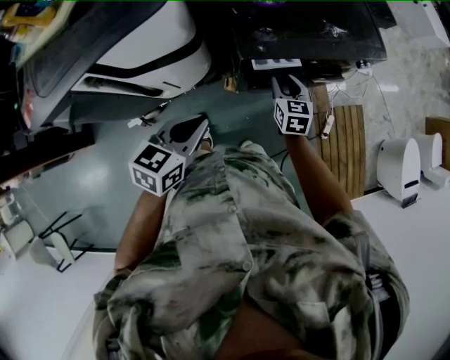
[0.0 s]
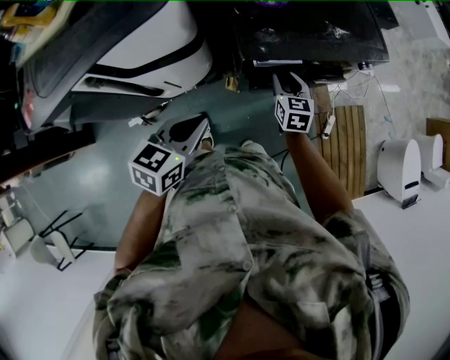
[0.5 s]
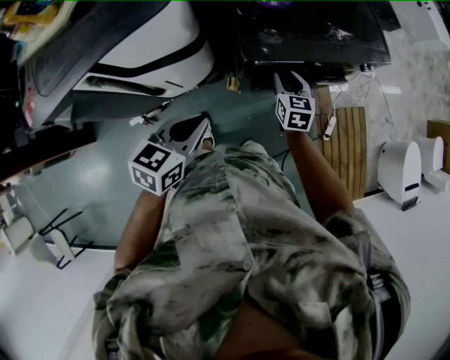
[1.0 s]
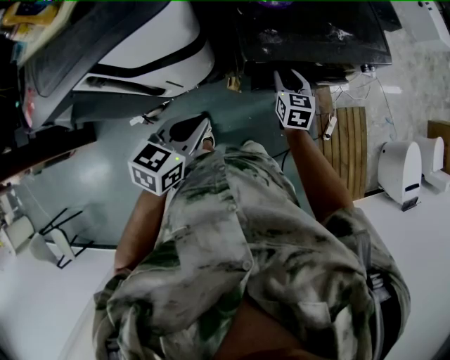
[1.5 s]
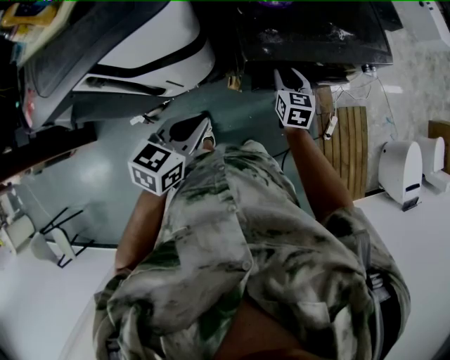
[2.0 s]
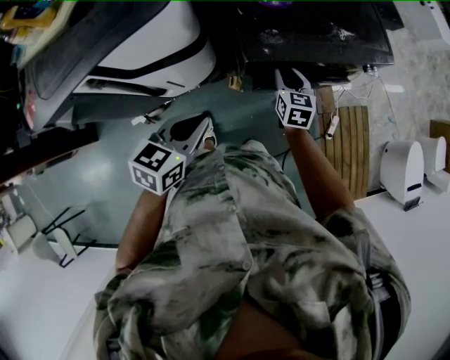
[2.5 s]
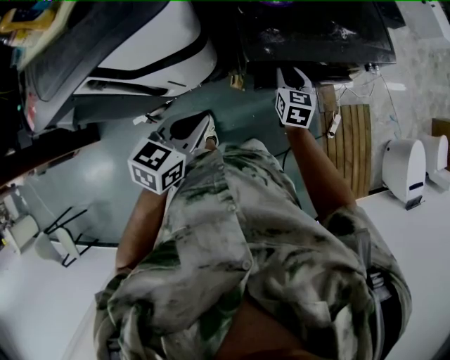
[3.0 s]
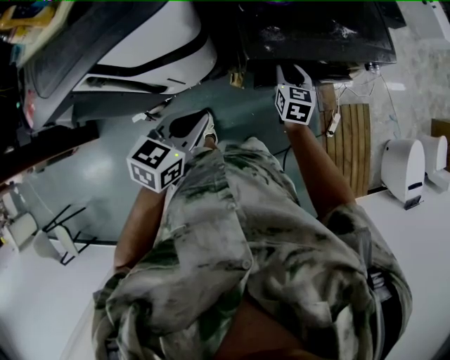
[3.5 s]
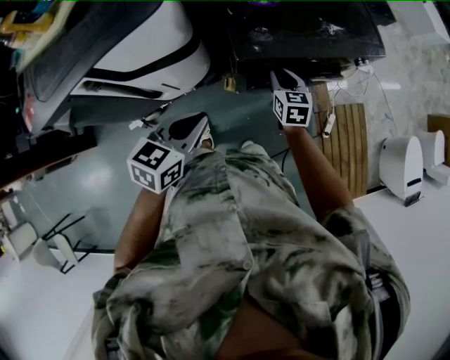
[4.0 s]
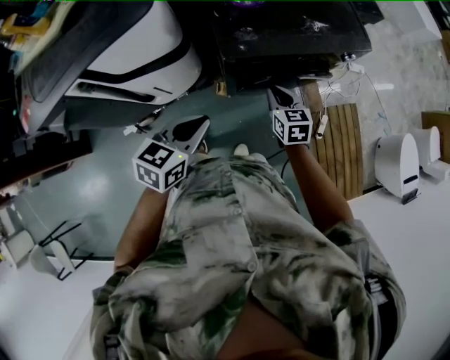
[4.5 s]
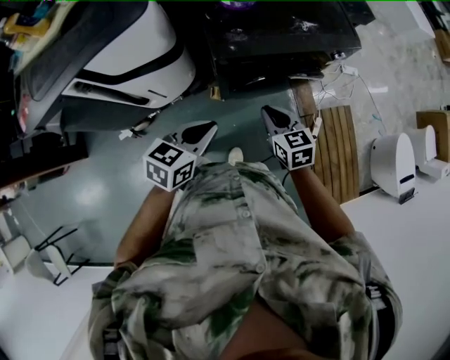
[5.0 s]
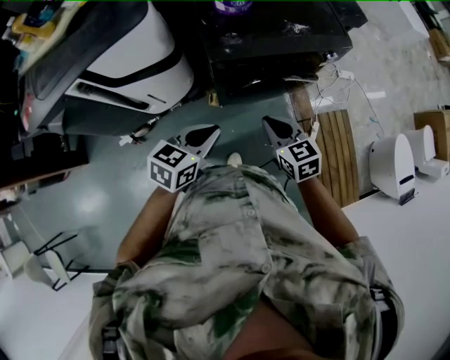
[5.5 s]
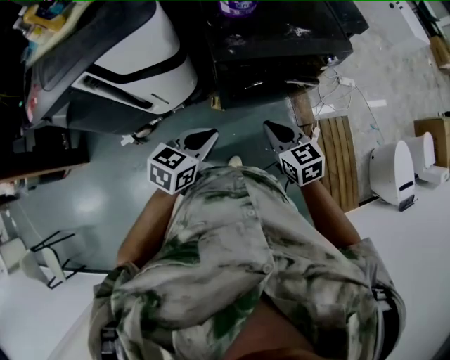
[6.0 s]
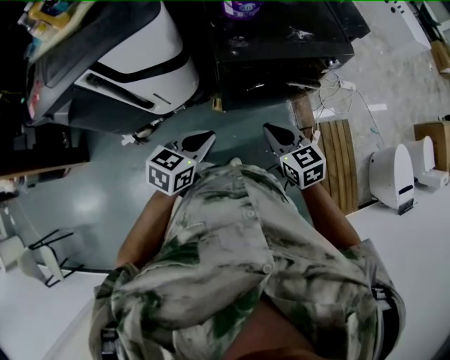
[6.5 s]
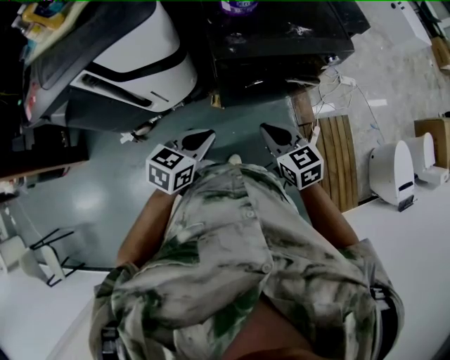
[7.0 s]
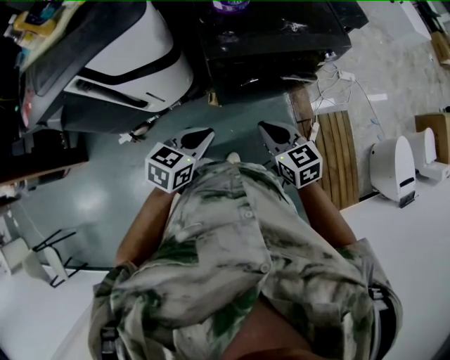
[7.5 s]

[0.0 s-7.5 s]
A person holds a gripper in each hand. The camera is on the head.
0.0 to 4.0 s: The grippers make only small movements.
4.0 to 5.5 s: The right gripper travels backward and upward by approximately 20 cm. The left gripper travels to the right and backward by about 15 cm.
5.5 to 7.5 s: There are only small adjustments of the grippers.

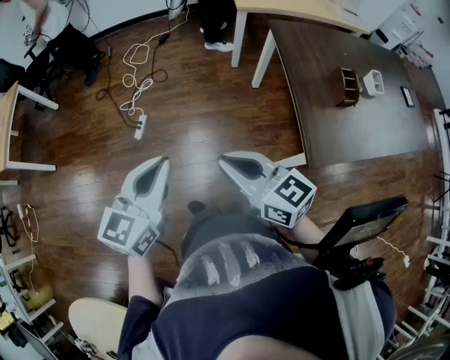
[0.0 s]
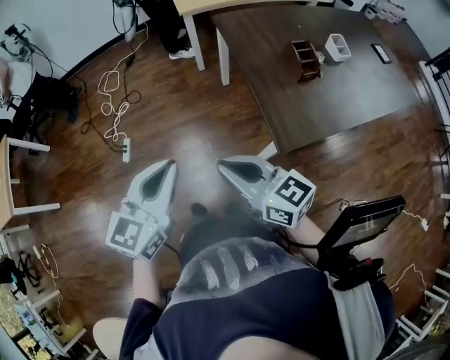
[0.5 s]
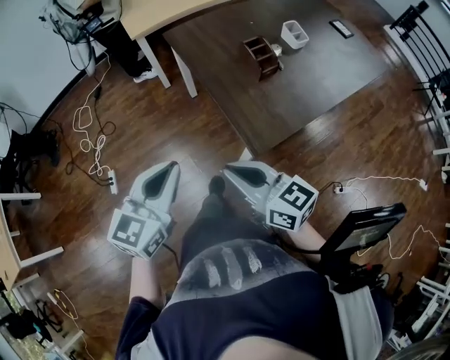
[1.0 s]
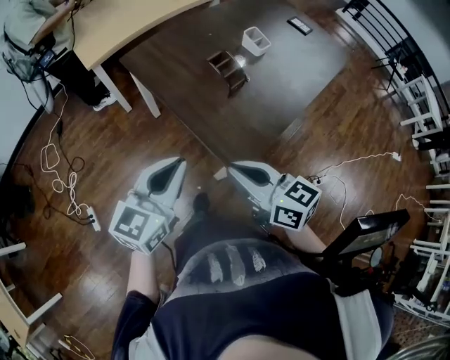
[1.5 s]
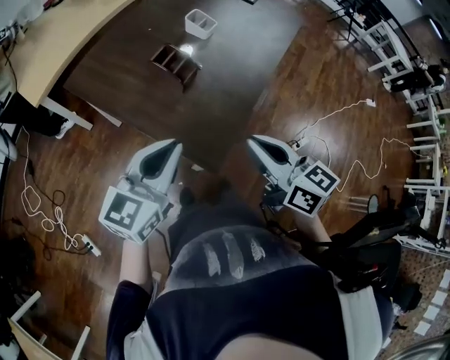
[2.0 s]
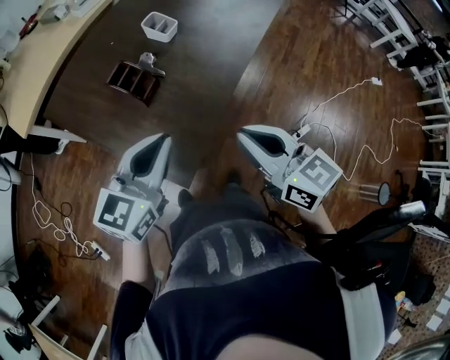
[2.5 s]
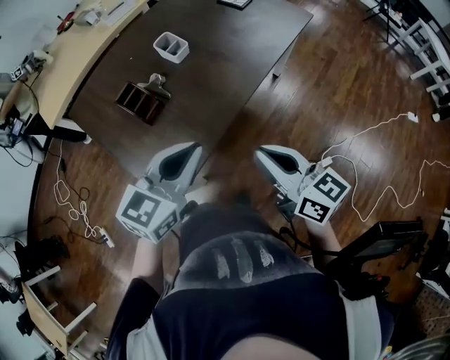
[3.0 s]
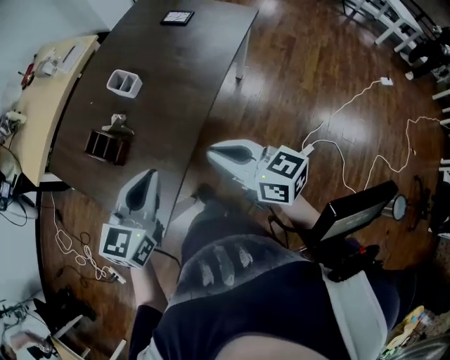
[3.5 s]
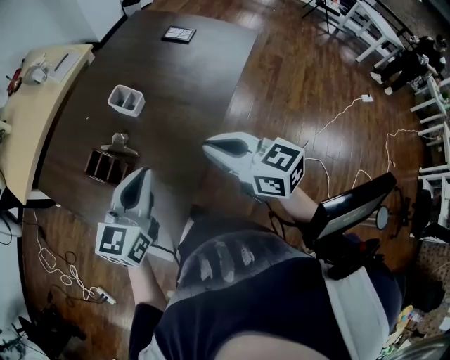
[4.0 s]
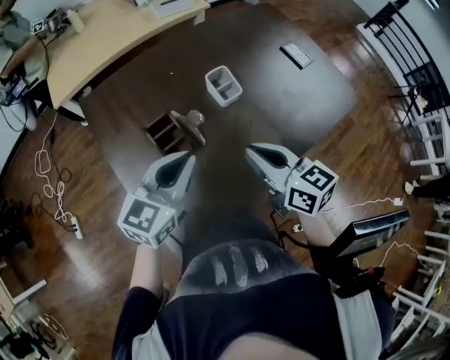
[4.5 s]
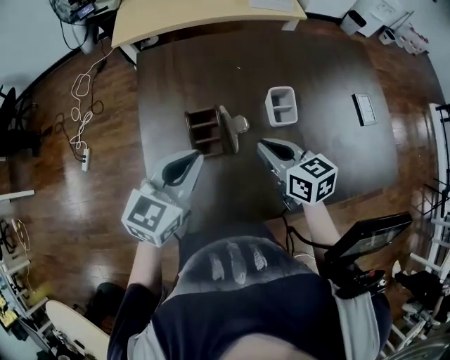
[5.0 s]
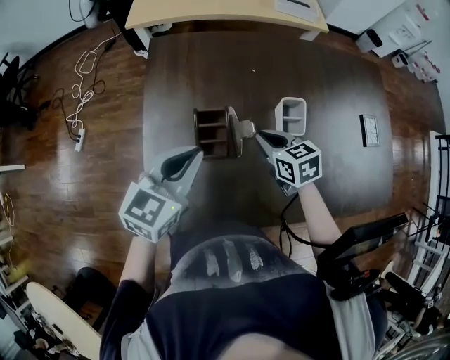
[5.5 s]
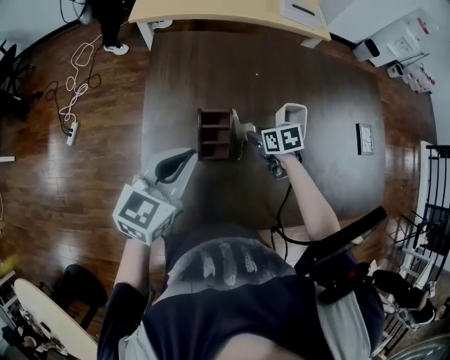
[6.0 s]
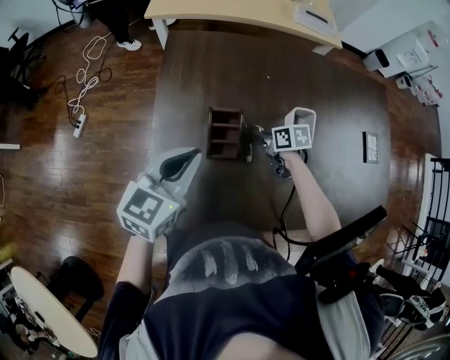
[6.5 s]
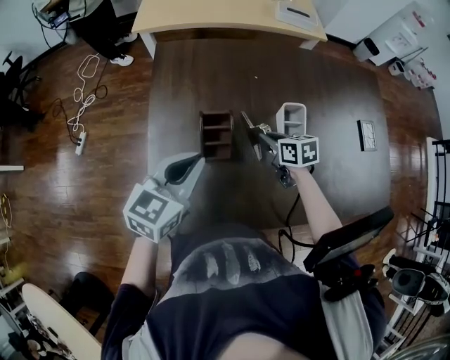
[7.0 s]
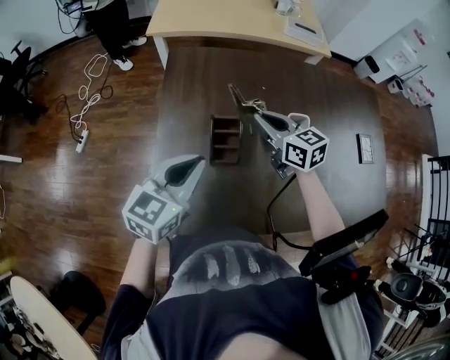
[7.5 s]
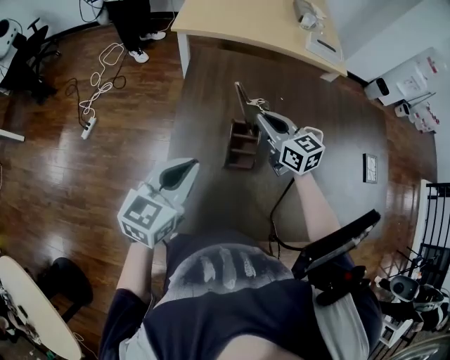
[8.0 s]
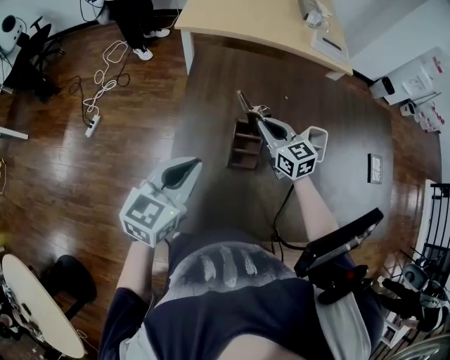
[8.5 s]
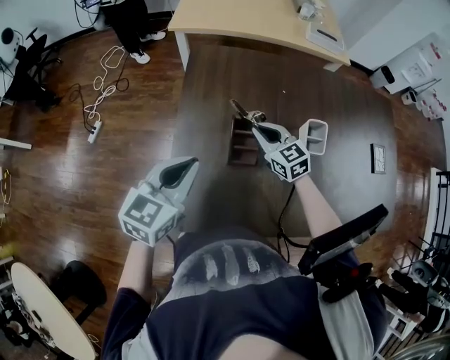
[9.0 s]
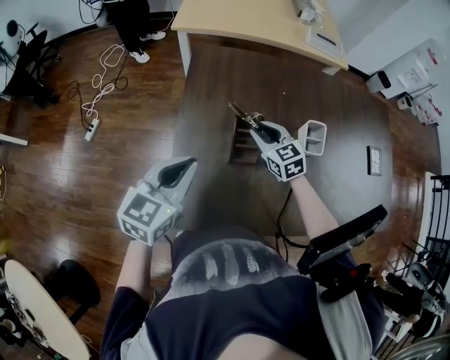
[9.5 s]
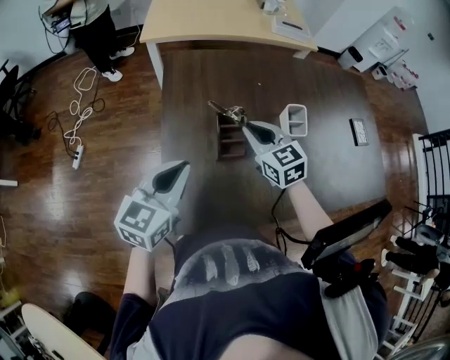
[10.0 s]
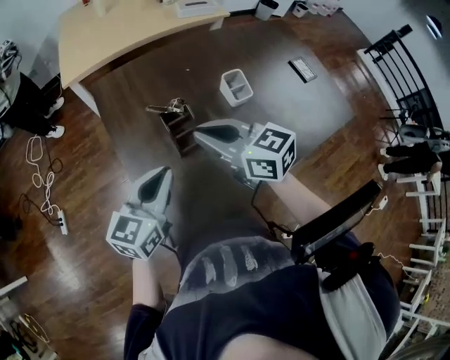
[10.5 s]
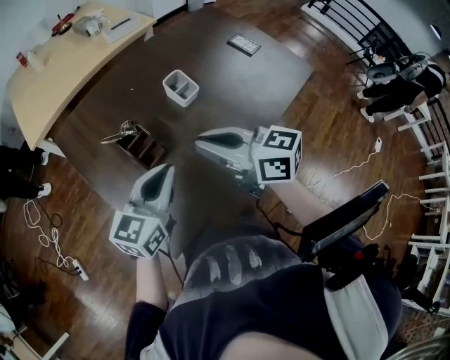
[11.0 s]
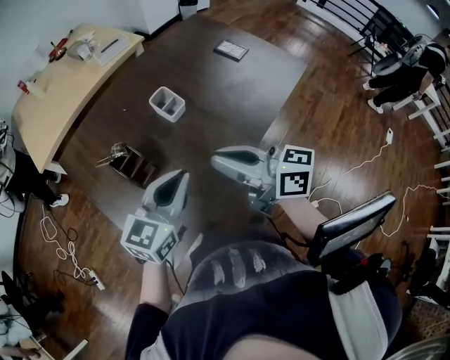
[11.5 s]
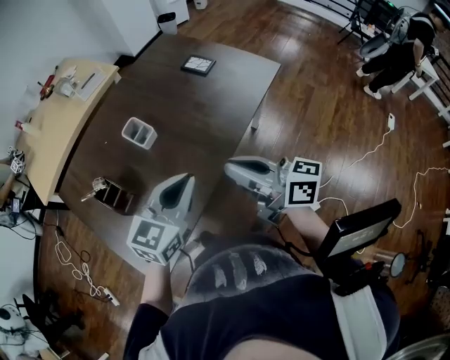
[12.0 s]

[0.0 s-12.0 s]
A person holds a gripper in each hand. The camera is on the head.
0.0 to 2.0 s: The pair of grippers is taken about 40 cm. The right gripper changes its angle by approximately 60 degrees. The left gripper turns by roughly 60 degrees.
2.0 to 4.0 s: Both grippers travel together to the right and forward, some 30 cm.
4.0 to 6.0 s: The right gripper changes place by some 40 cm, angles its fingers downward, by about 40 degrees, and opens up. Meanwhile the left gripper moves roughly 20 cm, and changes its angle by about 50 degrees.
6.0 to 8.0 s: The right gripper travels upward and to the left by roughly 20 cm, tilts its fingers about 40 degrees upward, and closes its fingers; the left gripper shifts approximately 10 cm to the left.
8.0 to 10.0 s: The right gripper heads backward, covering approximately 5 cm, and reaches roughly 10 cm downward, then returns.
10.0 to 12.0 s: The right gripper moves approximately 40 cm, and points its fingers approximately 30 degrees further upward, while the left gripper moves approximately 40 cm, and turns by roughly 50 degrees.

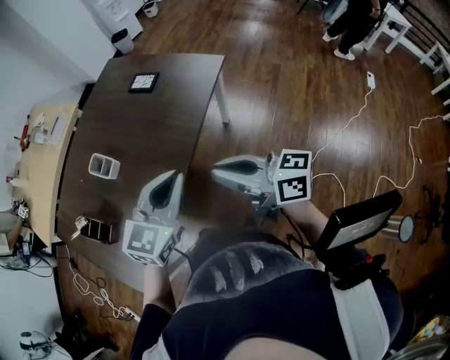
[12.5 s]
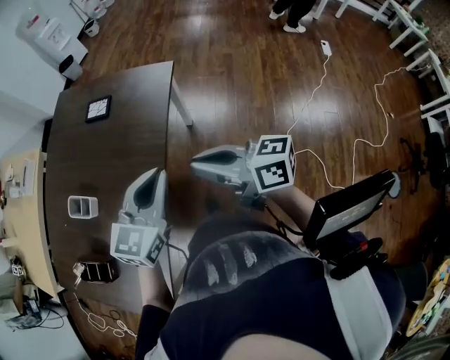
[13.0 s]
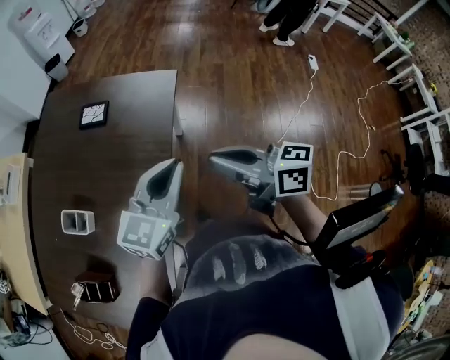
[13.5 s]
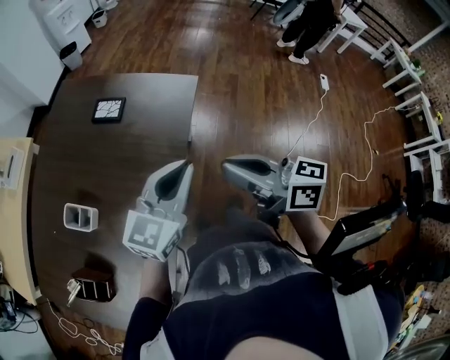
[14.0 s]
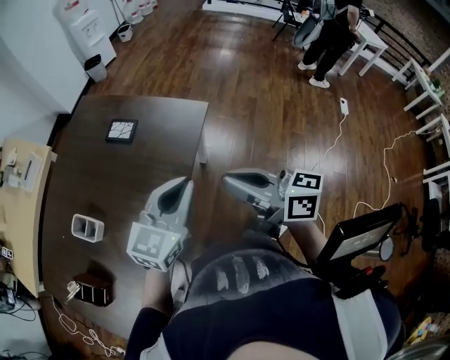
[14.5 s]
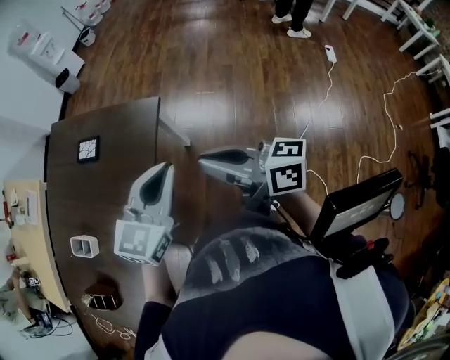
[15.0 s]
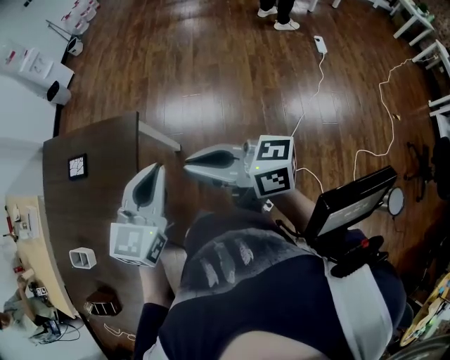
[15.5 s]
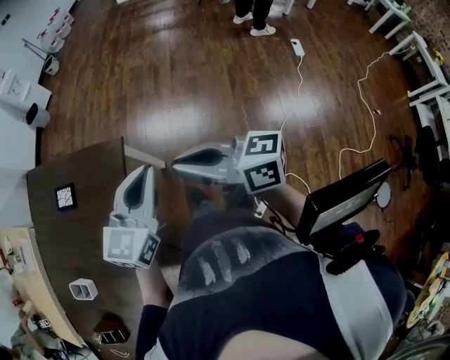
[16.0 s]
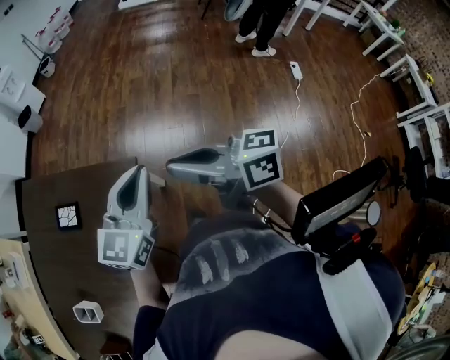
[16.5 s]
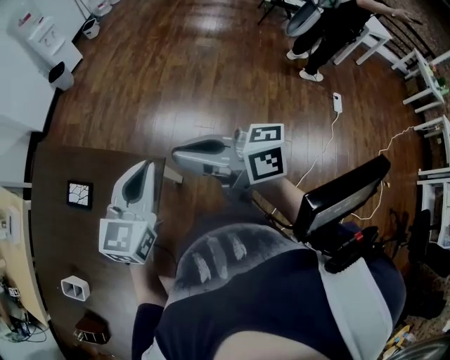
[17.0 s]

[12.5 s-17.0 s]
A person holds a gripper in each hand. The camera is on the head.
12.5 to 14.5 s: The grippers both shift forward and to the right by about 20 cm.
14.5 to 17.0 s: The grippers both shift forward and to the right by some 35 cm.

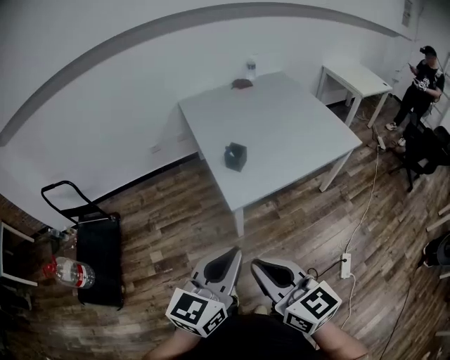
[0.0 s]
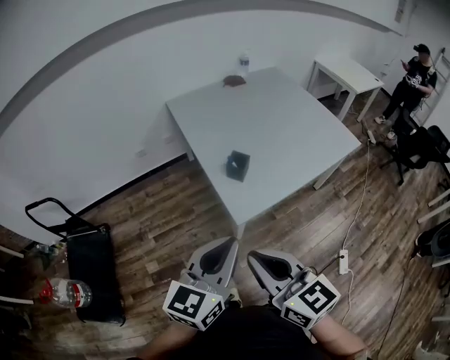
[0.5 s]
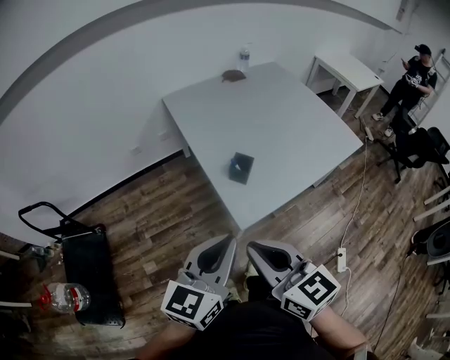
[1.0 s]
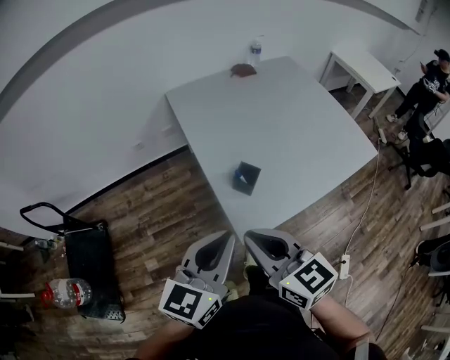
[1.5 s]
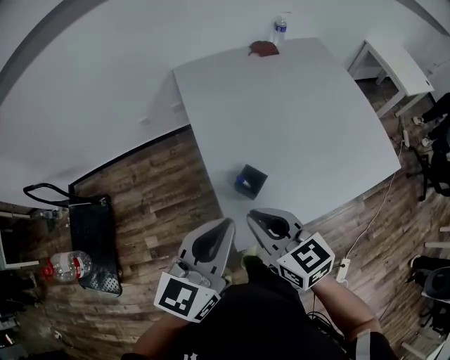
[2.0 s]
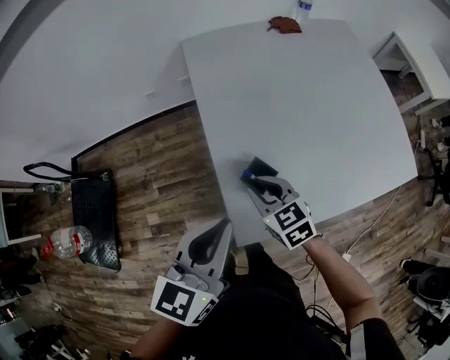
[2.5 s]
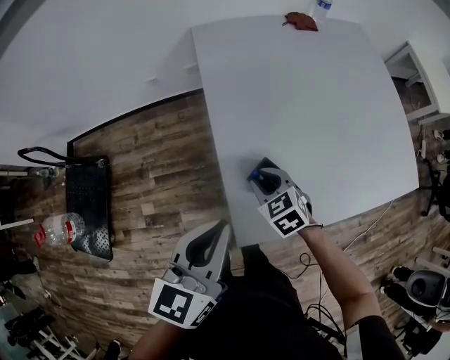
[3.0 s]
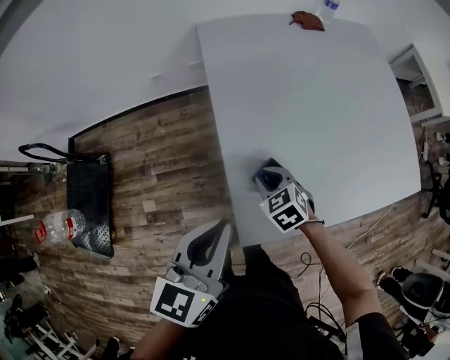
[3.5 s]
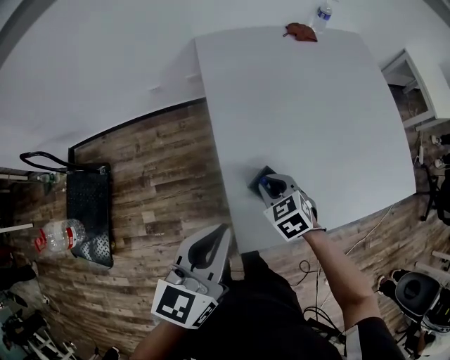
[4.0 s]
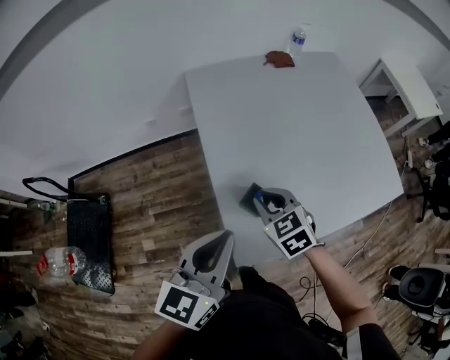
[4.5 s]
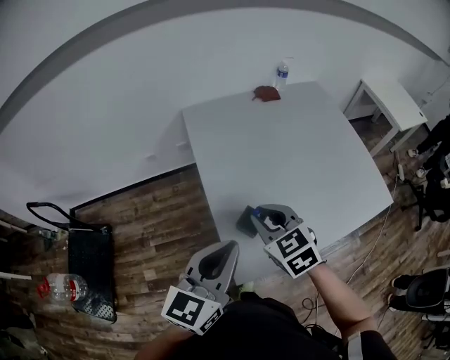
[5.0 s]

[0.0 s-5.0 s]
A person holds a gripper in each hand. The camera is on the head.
0.0 to 2.5 s: The right gripper moves forward and downward, approximately 50 cm, and swivels about 30 degrees, while the left gripper travels forward by some 35 cm.
2.5 to 5.0 s: The right gripper goes approximately 15 cm upward.
